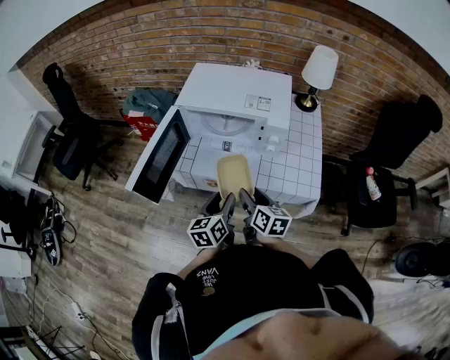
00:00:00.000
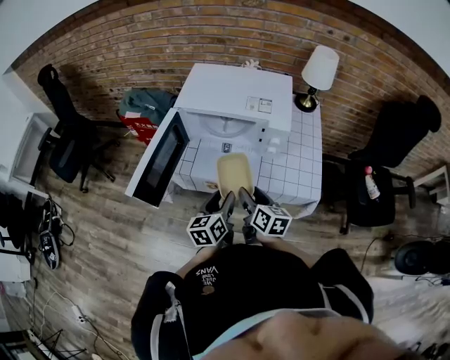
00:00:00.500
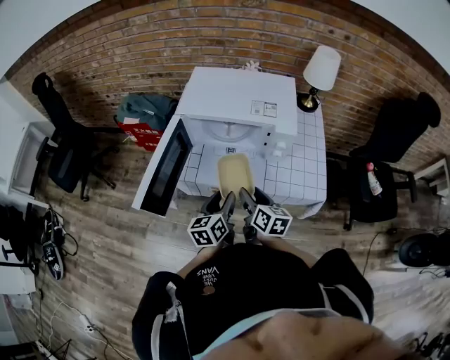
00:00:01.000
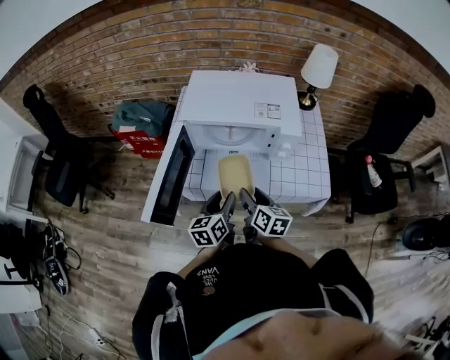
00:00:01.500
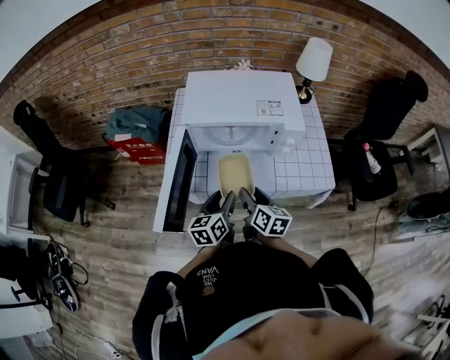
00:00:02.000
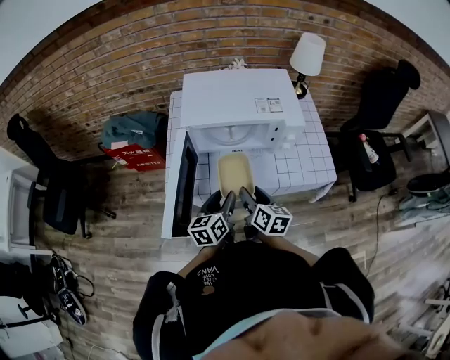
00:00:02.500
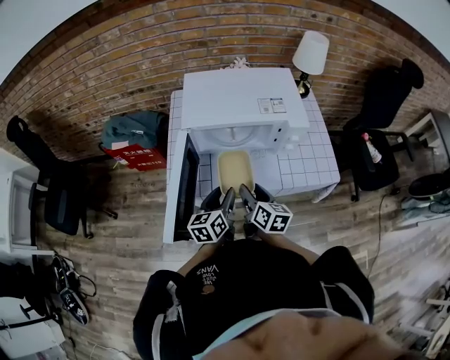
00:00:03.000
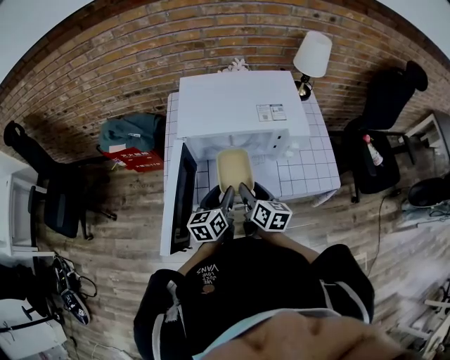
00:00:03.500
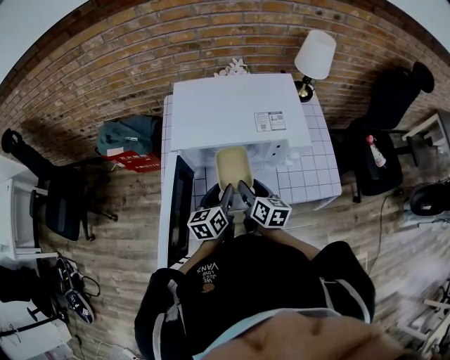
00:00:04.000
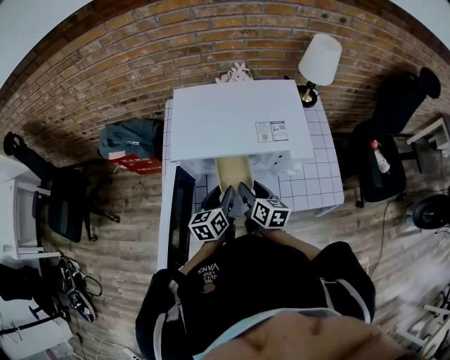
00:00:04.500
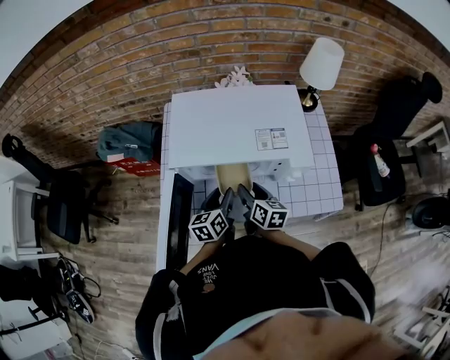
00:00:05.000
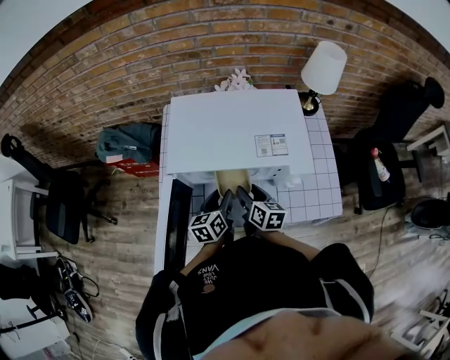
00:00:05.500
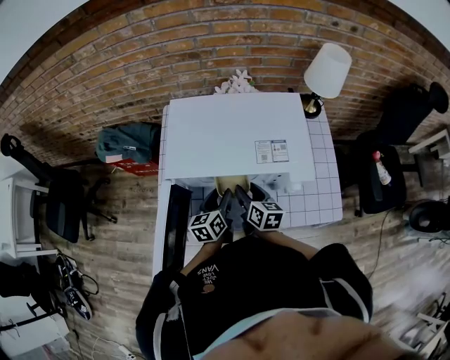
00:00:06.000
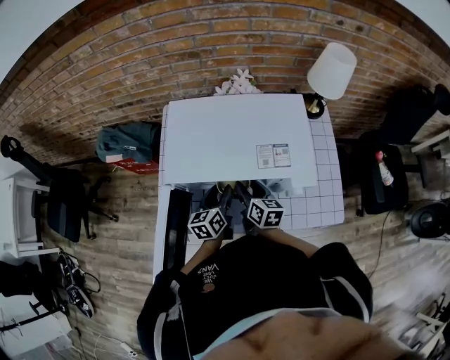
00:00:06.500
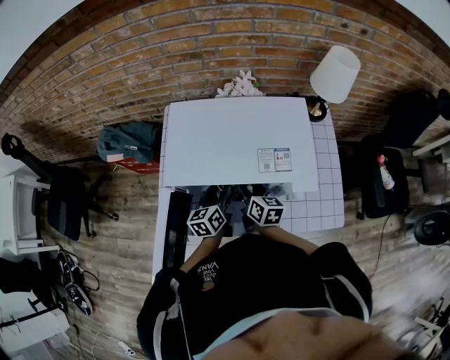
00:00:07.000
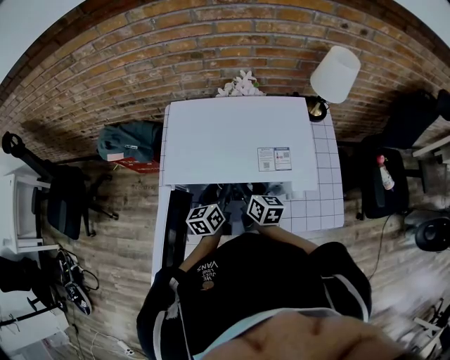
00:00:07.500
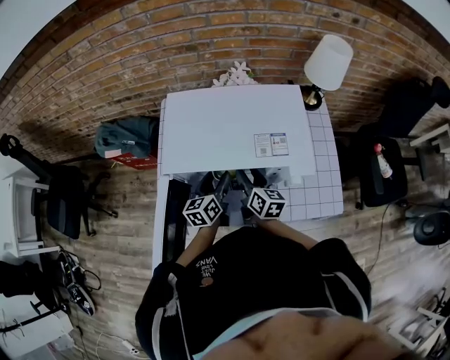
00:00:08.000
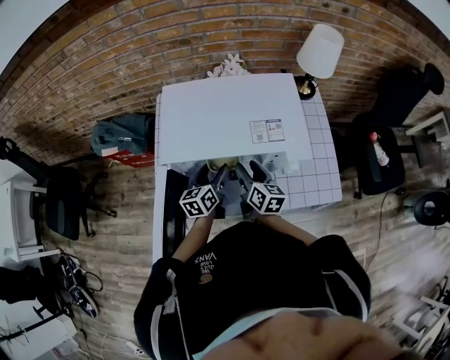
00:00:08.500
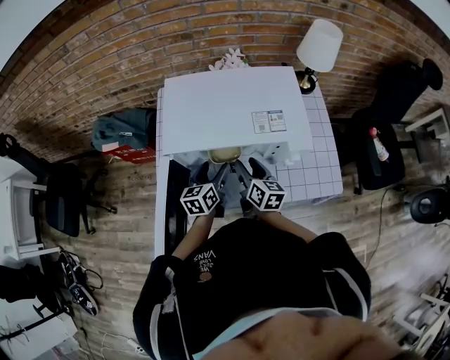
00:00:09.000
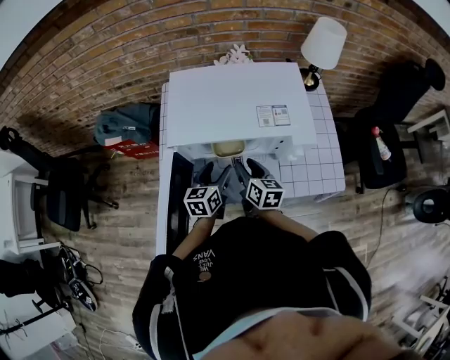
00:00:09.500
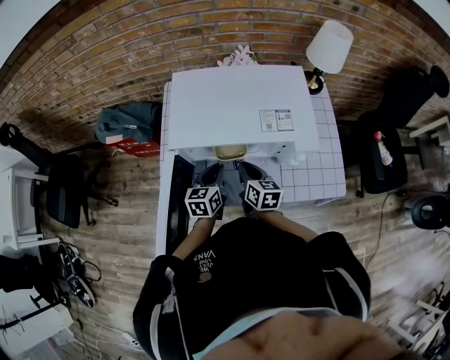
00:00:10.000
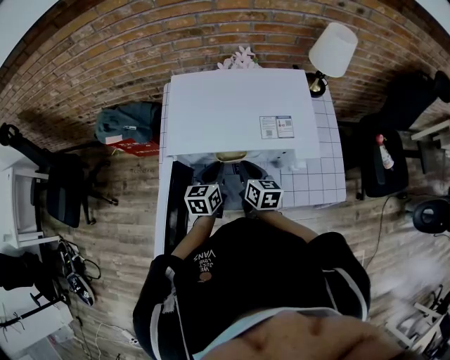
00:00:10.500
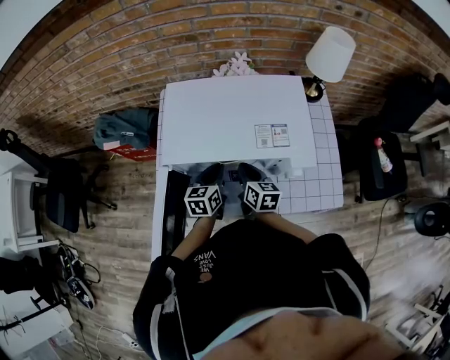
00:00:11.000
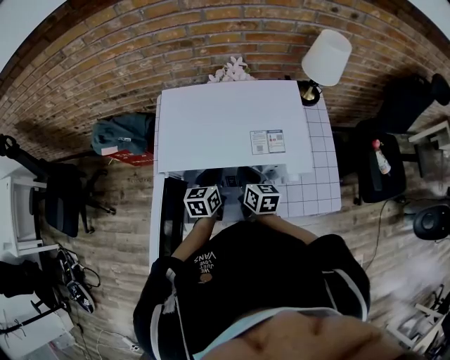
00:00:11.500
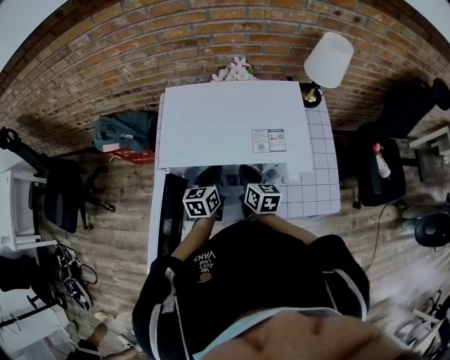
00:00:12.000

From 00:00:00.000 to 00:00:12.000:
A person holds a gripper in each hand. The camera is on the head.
From 00:00:00.000 to 00:00:02.000: The two grippers go some 10 cm to the left and forward.
From 00:00:02.000 to 00:00:04.000: Both grippers travel together forward, some 10 cm.
From 00:00:04.000 to 00:00:06.000: Both grippers move forward, some 10 cm.
From 00:00:06.000 to 00:00:08.000: The grippers move only a little.
From 00:00:08.000 to 00:00:10.000: The grippers both shift backward by about 5 cm. The right gripper closes its fingers, while the left gripper closes up.
From 00:00:10.000 to 00:00:12.000: The right gripper changes place by some 5 cm; the left gripper moves forward, about 5 cm.

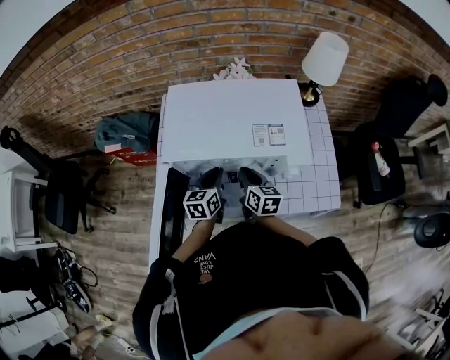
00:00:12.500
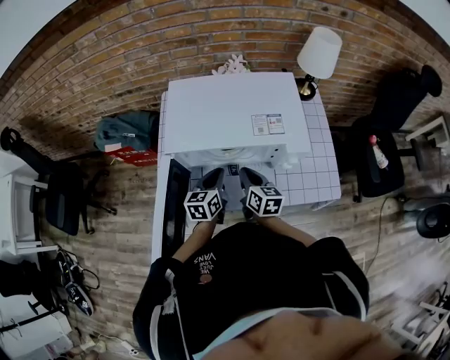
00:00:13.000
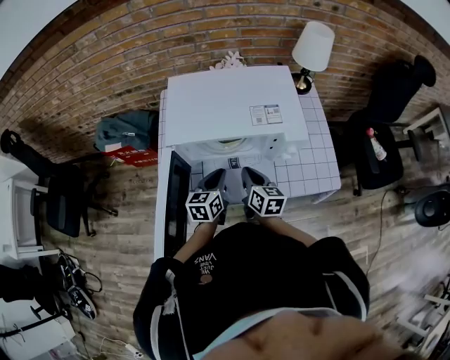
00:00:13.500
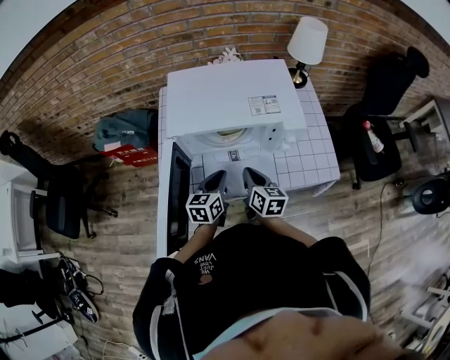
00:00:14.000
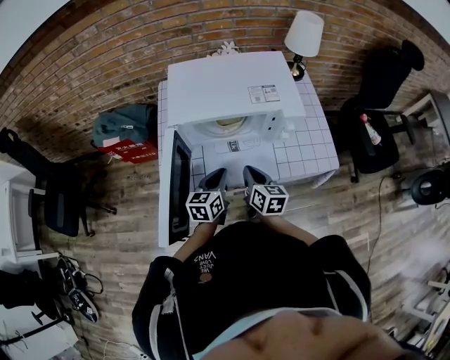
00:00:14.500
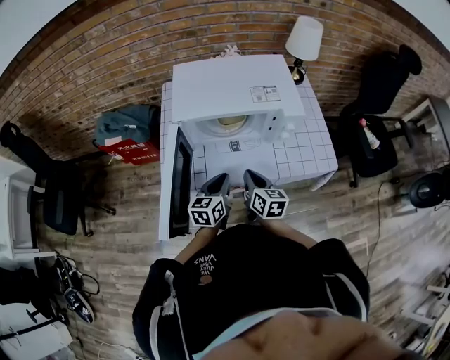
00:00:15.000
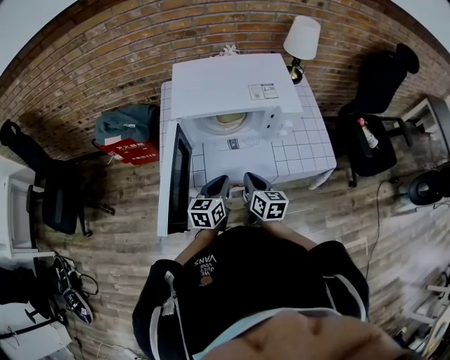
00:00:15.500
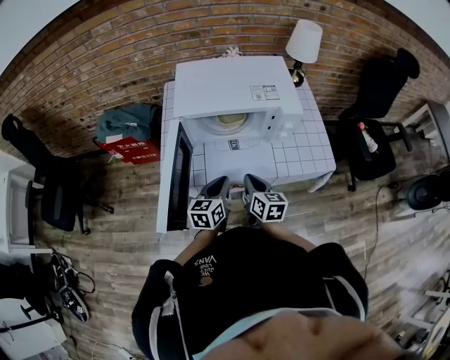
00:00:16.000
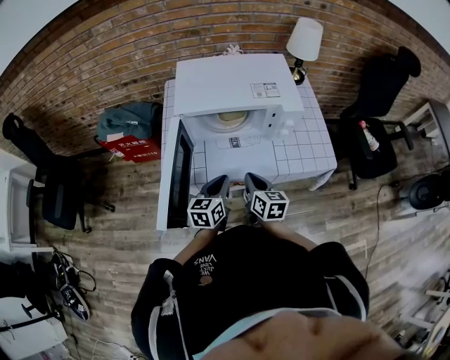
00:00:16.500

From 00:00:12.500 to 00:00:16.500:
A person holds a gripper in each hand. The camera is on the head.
From 00:00:12.500 to 00:00:14.500: The two grippers go roughly 15 cm backward.
From 00:00:14.500 to 00:00:16.500: Both grippers move backward, approximately 5 cm.

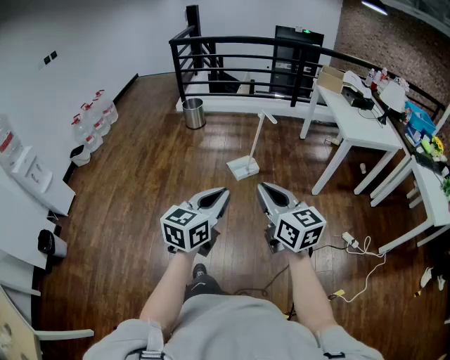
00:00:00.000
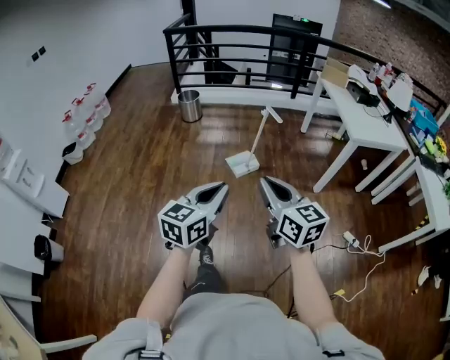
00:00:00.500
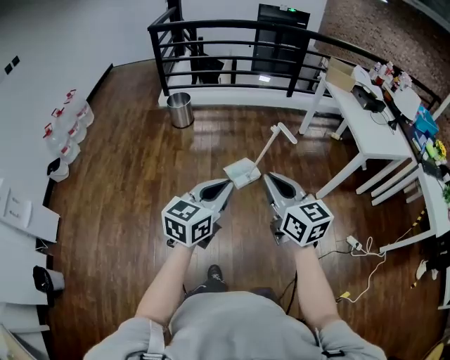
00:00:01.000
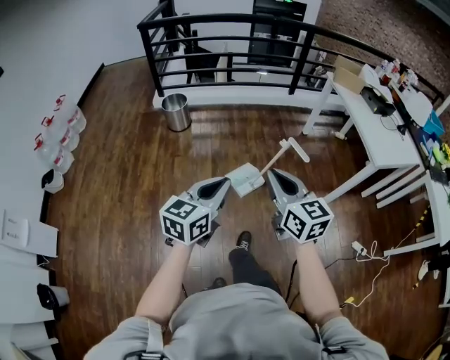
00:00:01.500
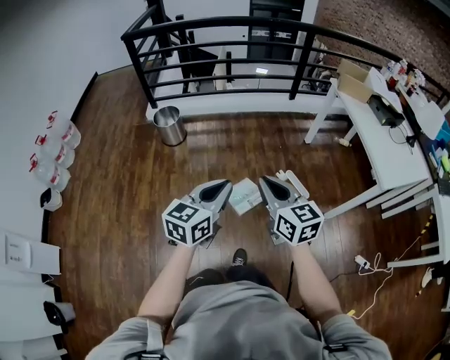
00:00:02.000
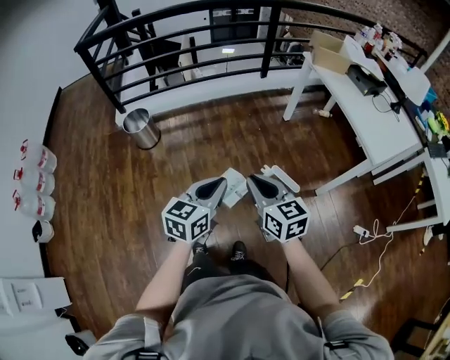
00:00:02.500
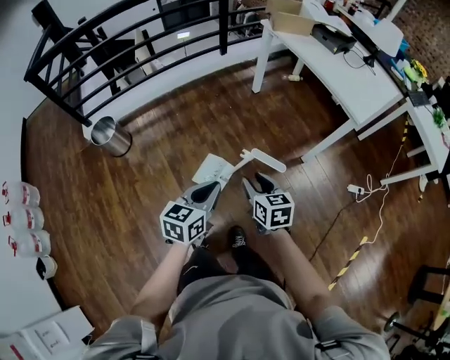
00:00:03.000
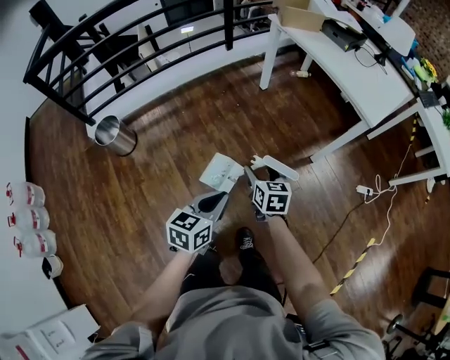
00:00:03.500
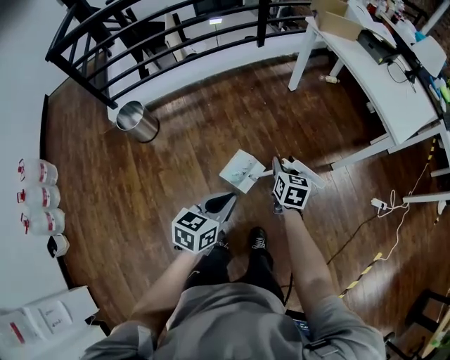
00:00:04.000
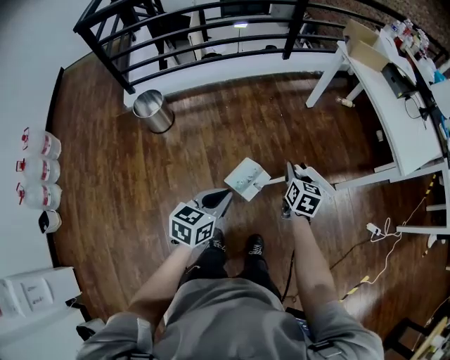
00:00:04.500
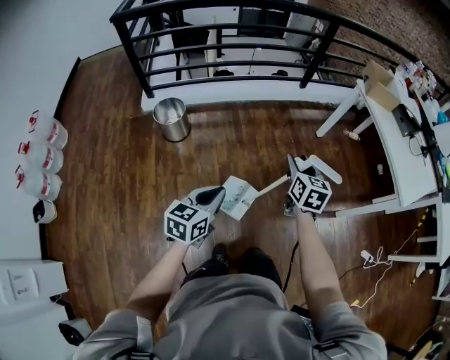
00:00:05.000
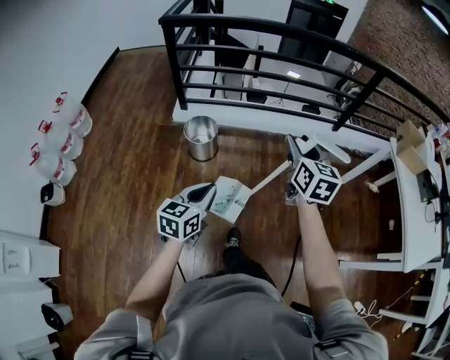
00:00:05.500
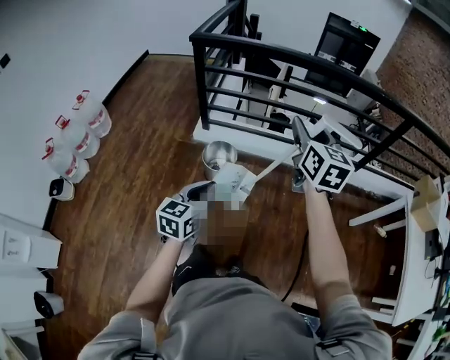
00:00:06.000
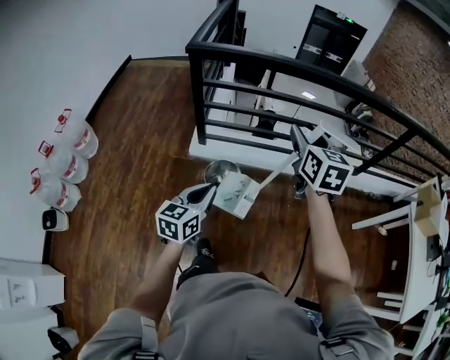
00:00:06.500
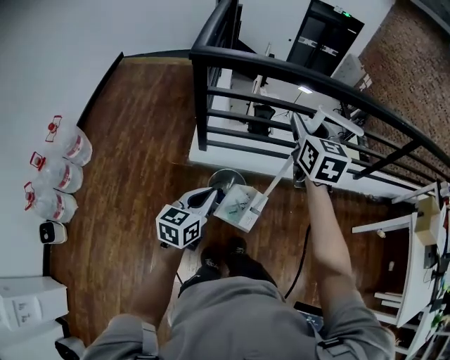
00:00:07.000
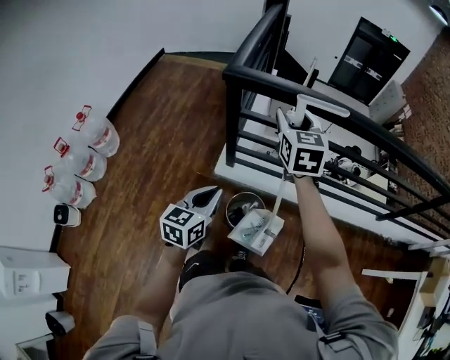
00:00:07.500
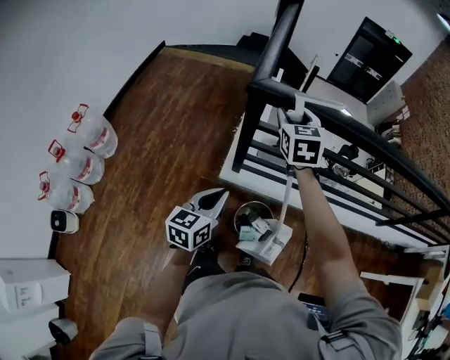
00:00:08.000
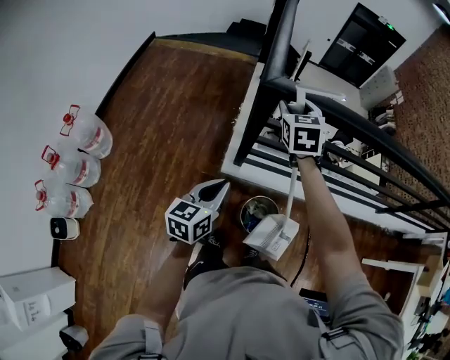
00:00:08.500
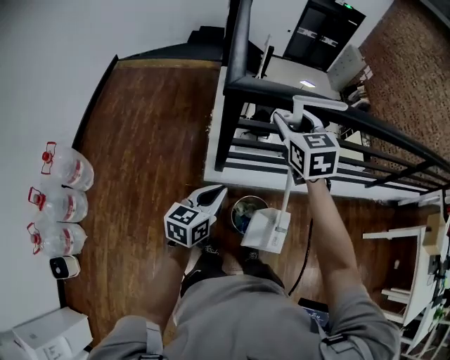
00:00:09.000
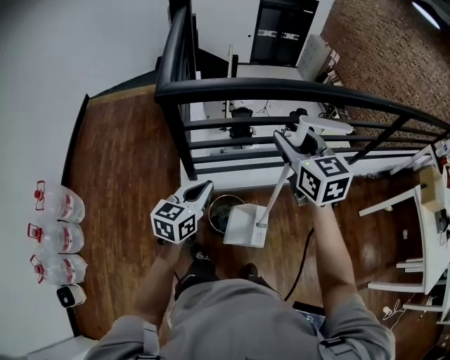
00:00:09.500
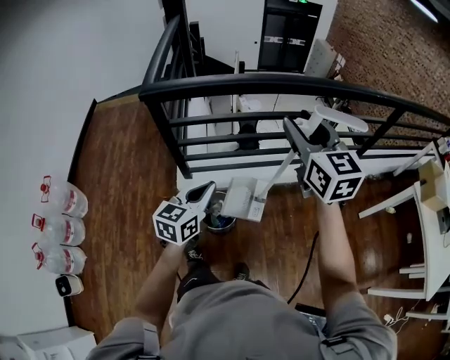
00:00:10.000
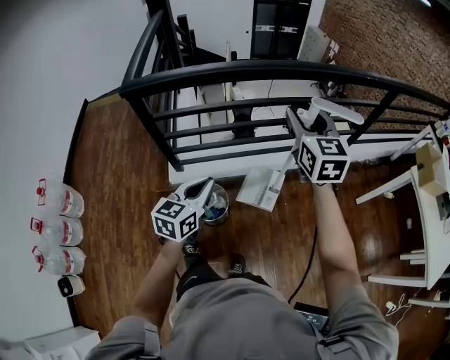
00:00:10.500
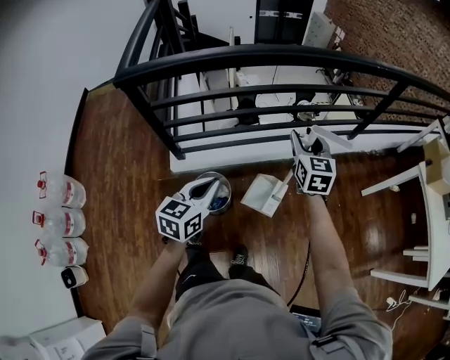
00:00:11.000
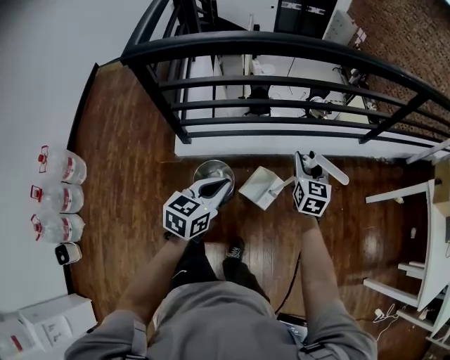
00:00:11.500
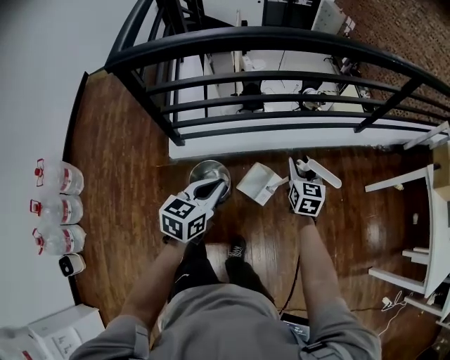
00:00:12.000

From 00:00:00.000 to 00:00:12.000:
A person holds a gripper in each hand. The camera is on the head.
From 00:00:00.000 to 00:00:02.000: The two grippers travel together, forward, roughly 60 cm.
From 00:00:02.000 to 00:00:04.000: The left gripper travels downward by roughly 15 cm, and rotates about 30 degrees. The right gripper heads downward, covering some 25 cm, turns by about 50 degrees, and opens up.
From 00:00:04.000 to 00:00:06.000: The pair of grippers is taken some 60 cm. The right gripper turns by about 50 degrees. Meanwhile the left gripper changes its angle by some 40 degrees.
From 00:00:06.000 to 00:00:08.000: Both grippers are carried forward and to the left, roughly 60 cm. The right gripper changes its angle by about 20 degrees.
From 00:00:08.000 to 00:00:10.000: The right gripper travels to the right and backward by approximately 40 cm, and changes its angle by some 20 degrees. Meanwhile the left gripper goes about 25 cm to the right, and rotates some 20 degrees.
From 00:00:10.000 to 00:00:12.000: The right gripper shifts approximately 40 cm downward, and rotates some 30 degrees. Meanwhile the left gripper moves downward and to the right, roughly 15 cm.
